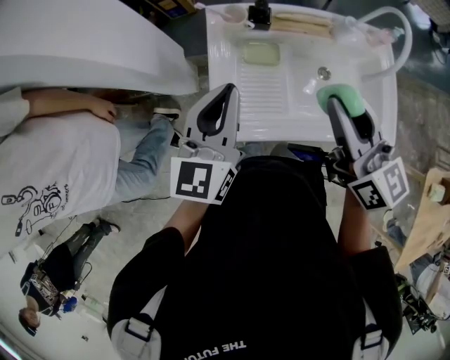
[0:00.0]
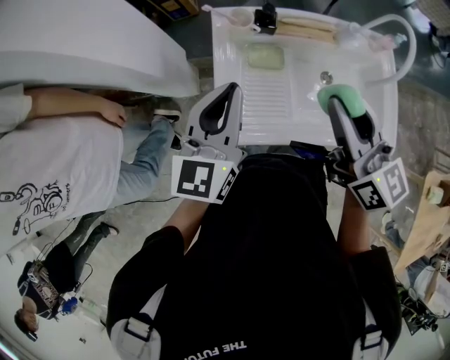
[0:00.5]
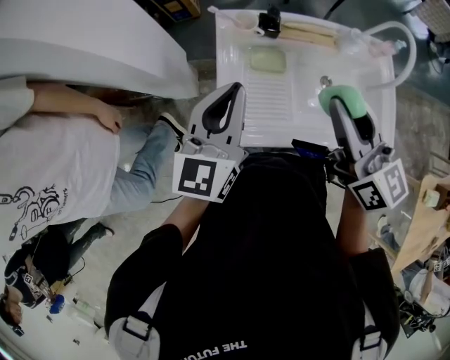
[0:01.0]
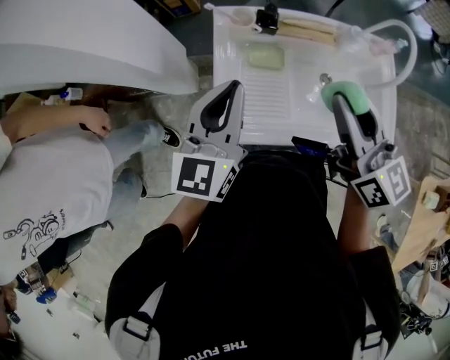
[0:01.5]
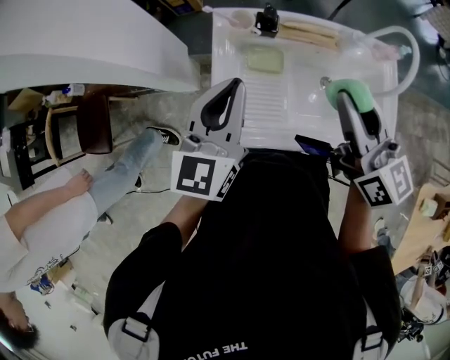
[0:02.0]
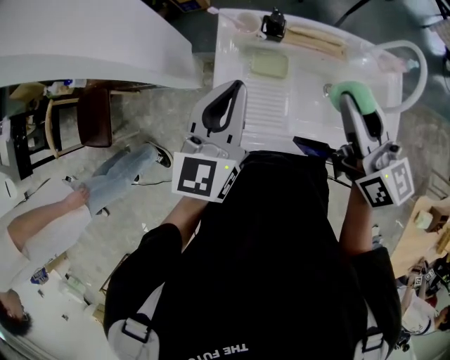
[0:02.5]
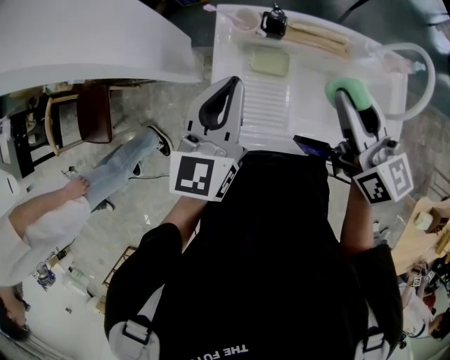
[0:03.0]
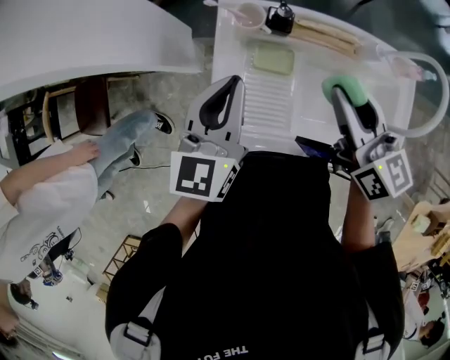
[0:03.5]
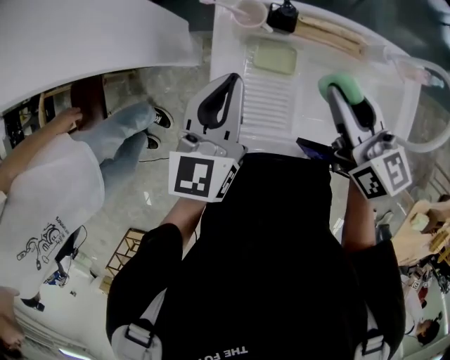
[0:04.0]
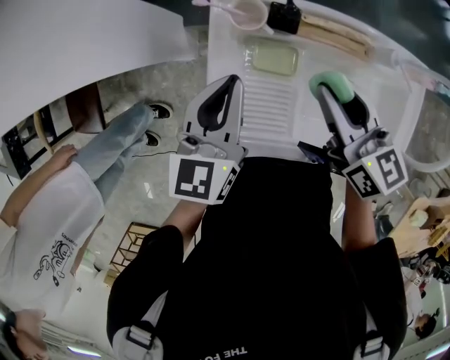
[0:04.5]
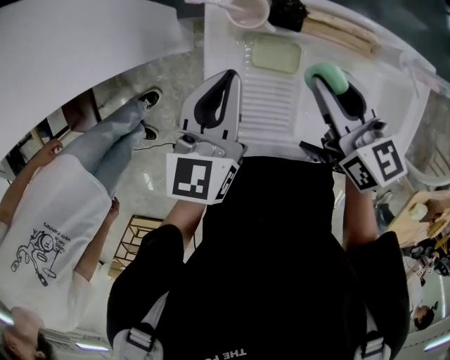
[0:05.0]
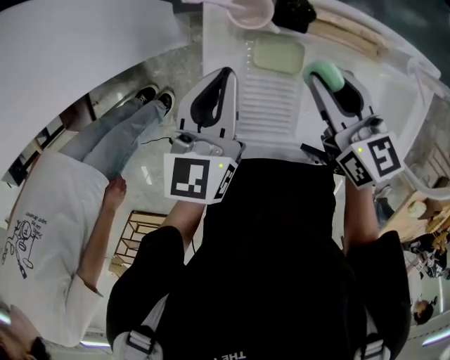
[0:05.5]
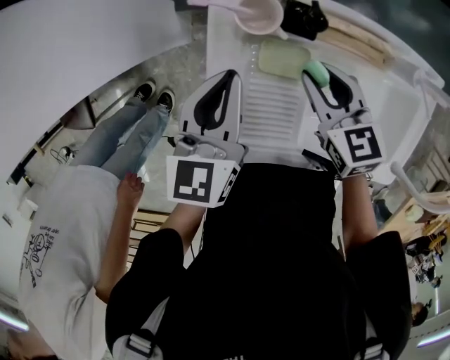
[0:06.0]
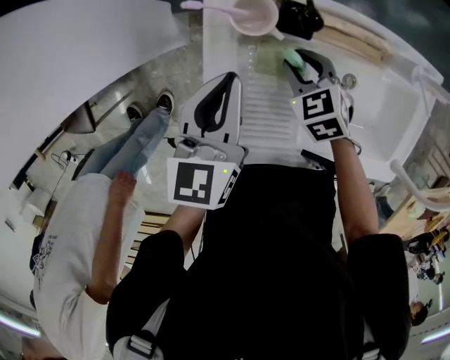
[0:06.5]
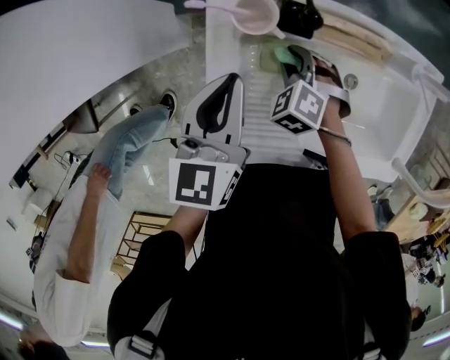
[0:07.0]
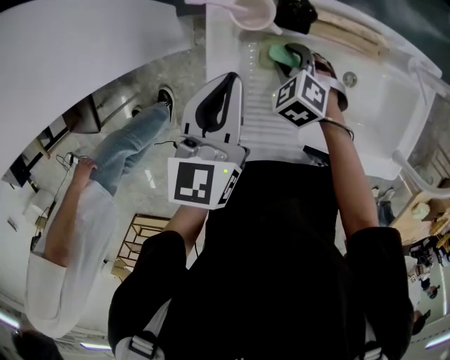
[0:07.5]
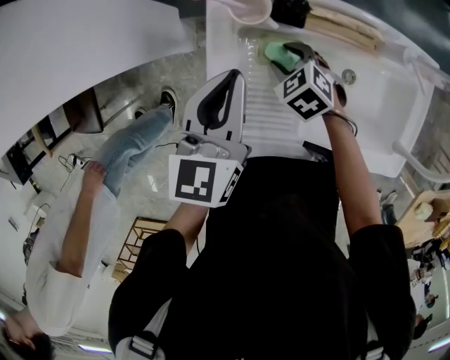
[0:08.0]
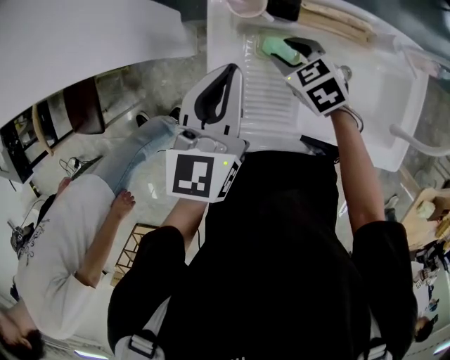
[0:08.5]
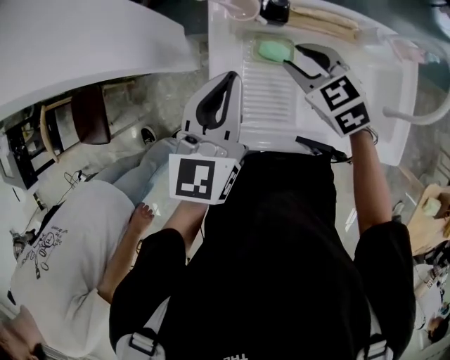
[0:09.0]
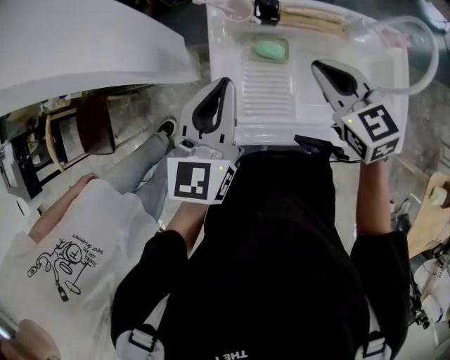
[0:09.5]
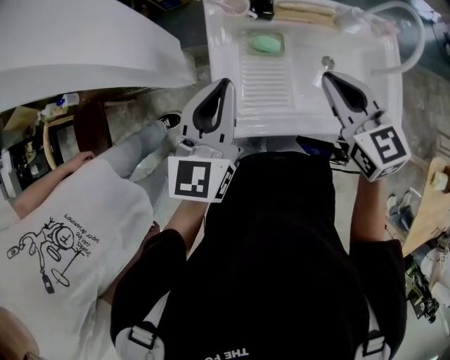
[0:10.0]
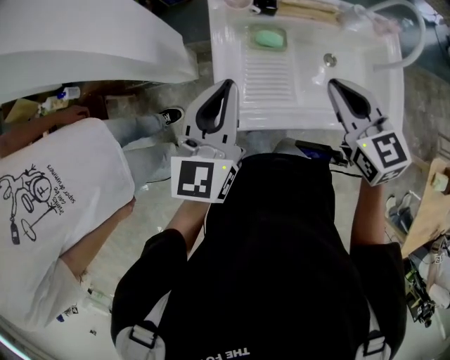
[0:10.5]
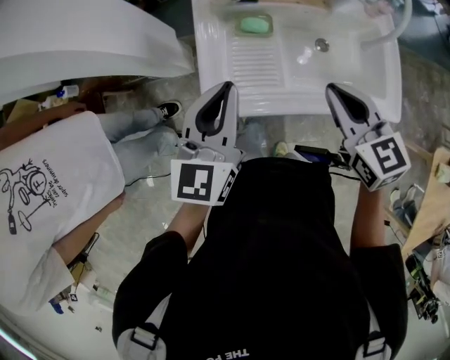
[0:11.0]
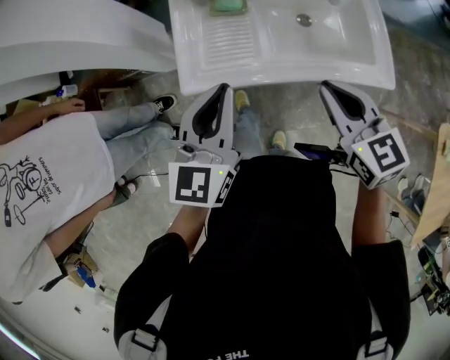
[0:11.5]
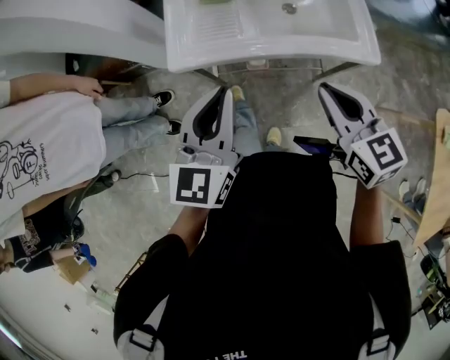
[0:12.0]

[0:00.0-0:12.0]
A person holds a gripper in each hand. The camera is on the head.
0:00.0 to 0:02.0: The right gripper moves some 5 cm.
0:02.0 to 0:04.0: Both grippers move forward and downward, some 10 cm.
0:04.0 to 0:06.0: The left gripper goes some 10 cm downward and forward. Meanwhile the right gripper goes about 15 cm downward and forward, and changes its angle by about 30 degrees.
0:06.0 to 0:08.0: The right gripper shifts about 10 cm downward, and rotates about 30 degrees.
0:08.0 to 0:10.0: The left gripper shifts approximately 15 cm backward and upward. Meanwhile the right gripper is displaced upward and backward by roughly 30 cm, tips its fingers upward by roughly 40 degrees, and closes its fingers.
0:10.0 to 0:12.0: Both grippers move backward and to the right, roughly 30 cm.

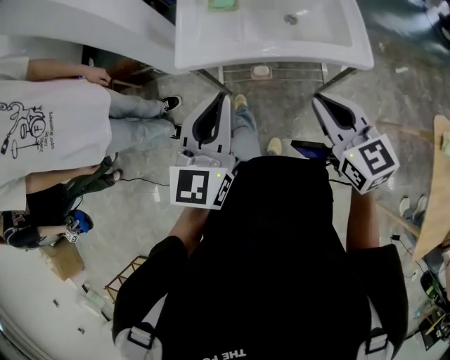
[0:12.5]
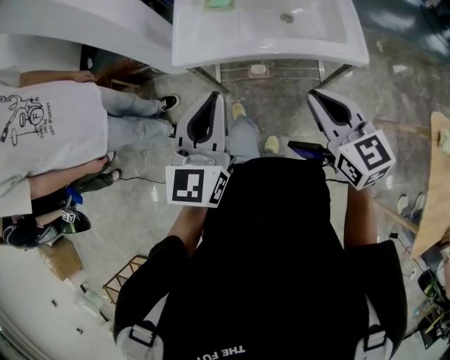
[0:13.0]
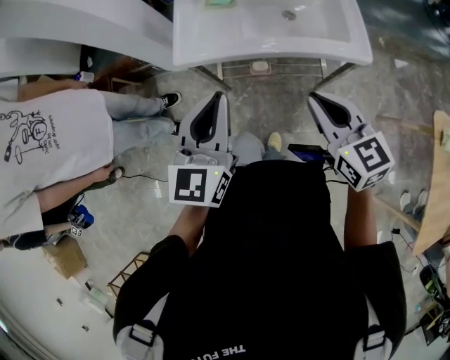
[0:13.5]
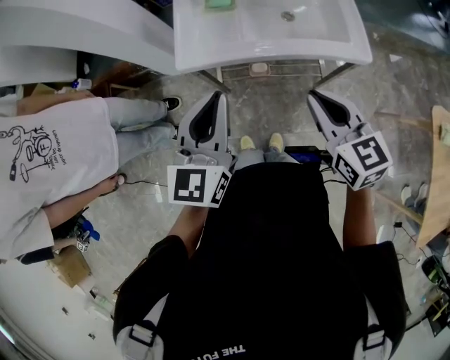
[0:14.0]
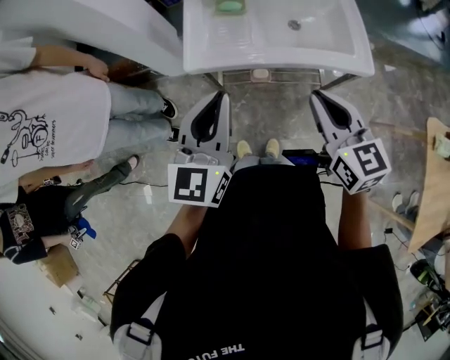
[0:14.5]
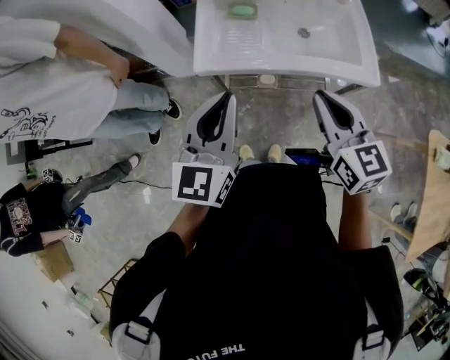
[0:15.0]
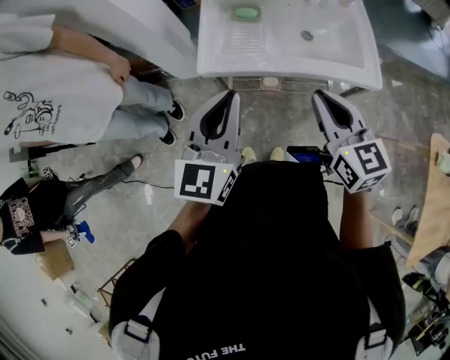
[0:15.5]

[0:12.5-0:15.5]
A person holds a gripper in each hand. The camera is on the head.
0:12.5 to 0:14.0: The grippers move only a little.
0:14.0 to 0:15.5: The right gripper shifts by about 5 cm.

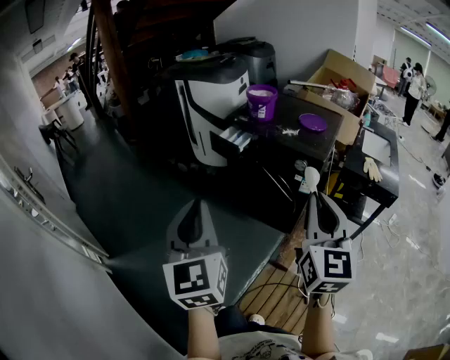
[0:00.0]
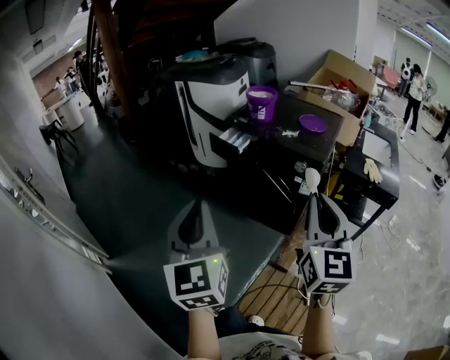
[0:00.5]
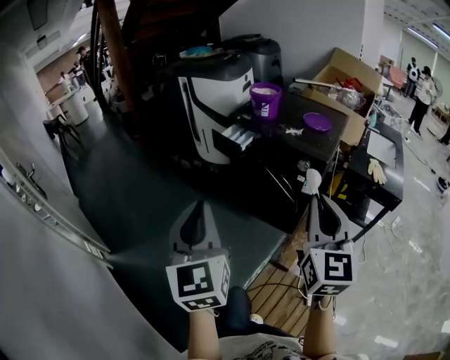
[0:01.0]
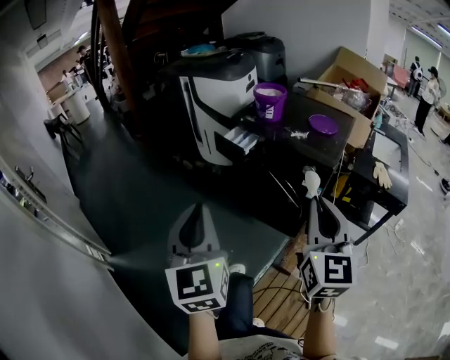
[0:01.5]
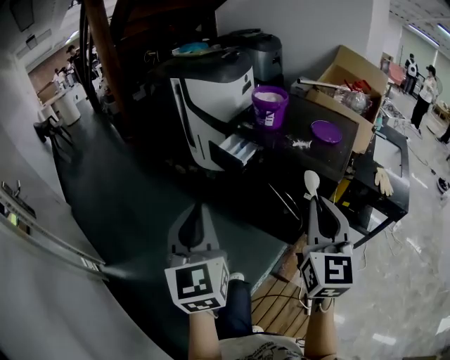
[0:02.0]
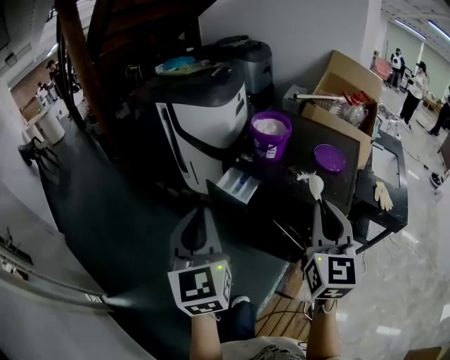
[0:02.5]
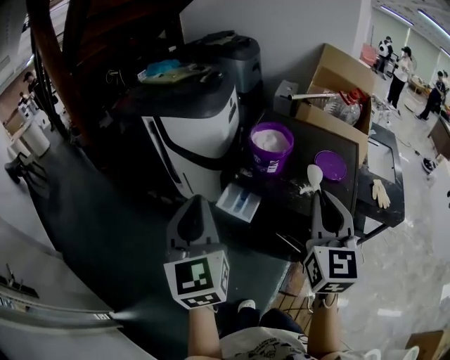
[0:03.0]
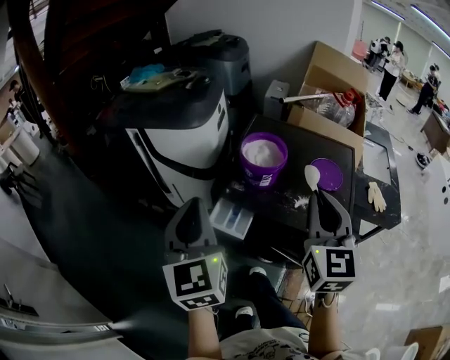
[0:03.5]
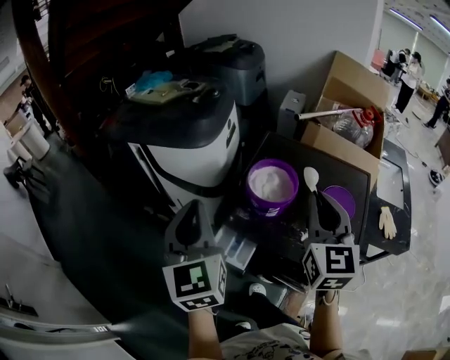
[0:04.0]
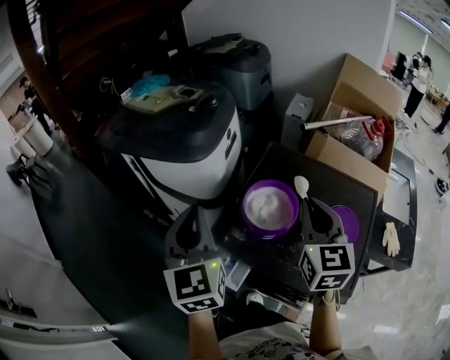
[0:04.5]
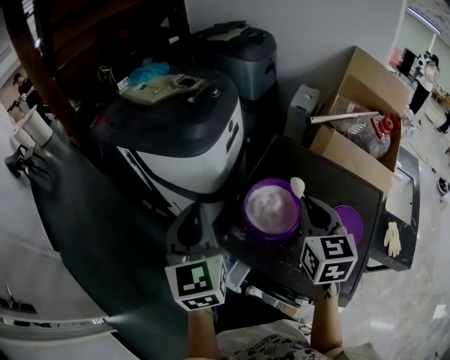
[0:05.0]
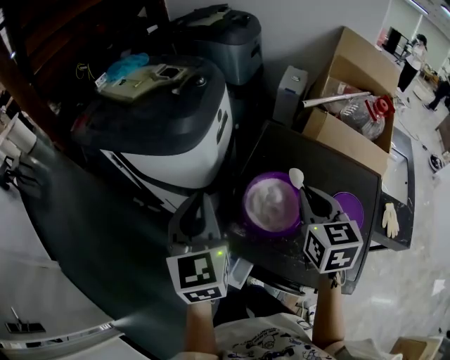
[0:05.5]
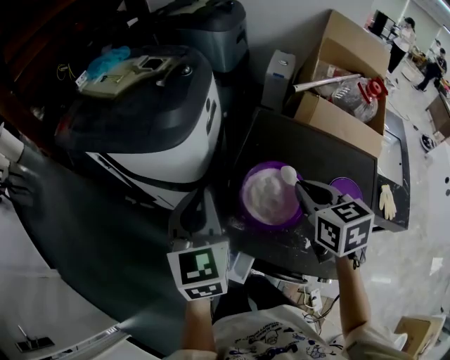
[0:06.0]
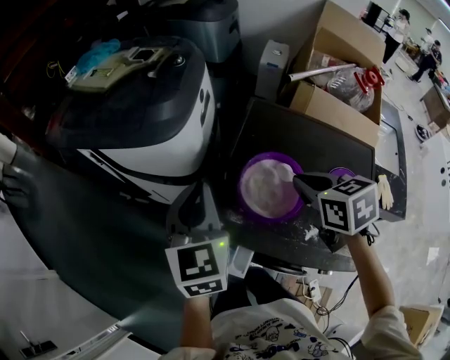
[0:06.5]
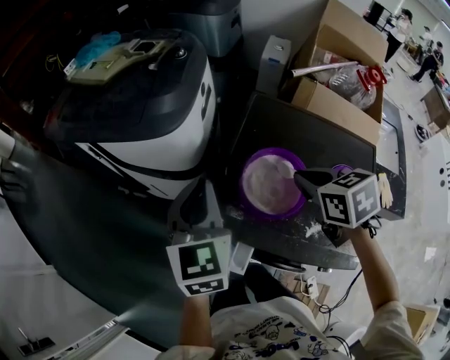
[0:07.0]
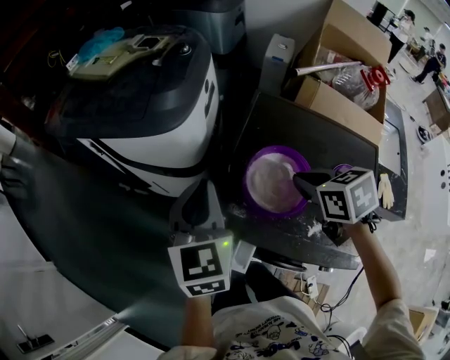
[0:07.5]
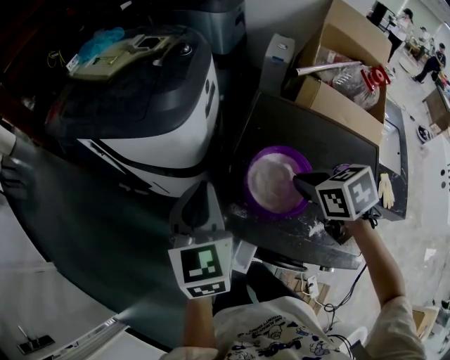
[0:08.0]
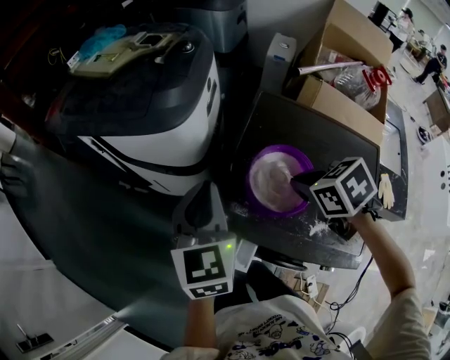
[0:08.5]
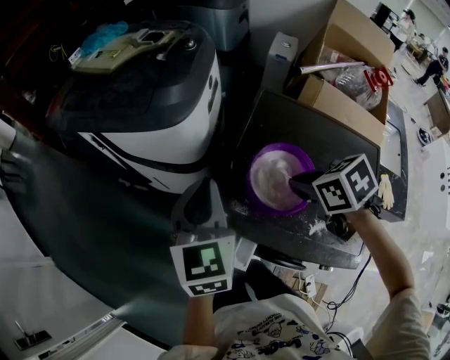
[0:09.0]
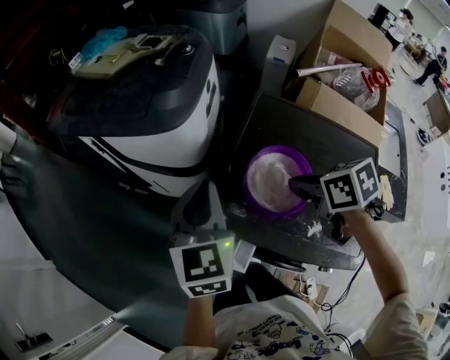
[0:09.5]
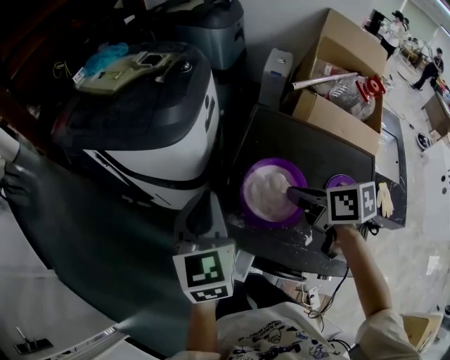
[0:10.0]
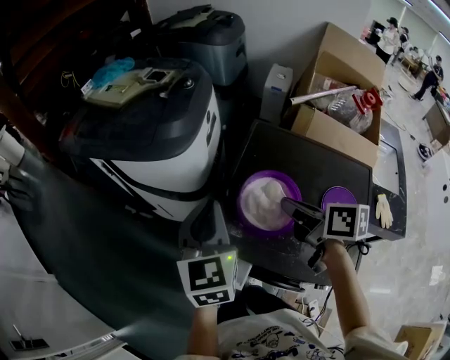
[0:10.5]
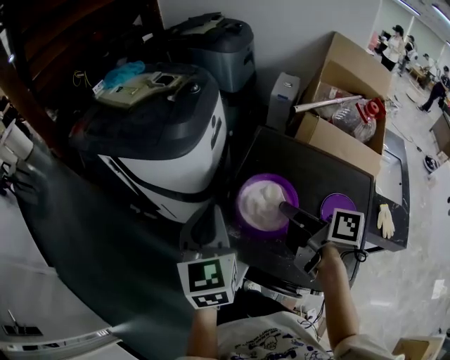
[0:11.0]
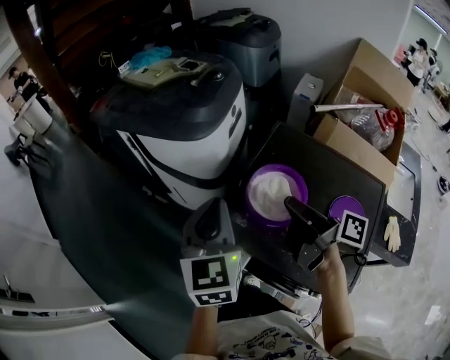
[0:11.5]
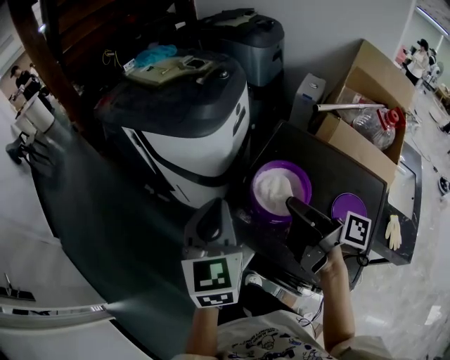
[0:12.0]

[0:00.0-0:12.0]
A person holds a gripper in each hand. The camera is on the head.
0:00.0 to 0:02.0: Both grippers move forward, approximately 15 cm.
0:02.0 to 0:04.0: The pair of grippers is taken forward, roughly 50 cm.
0:04.0 to 0:06.0: The two grippers go some 20 cm forward and downward. The right gripper turns by about 30 degrees.
0:06.0 to 0:08.0: The right gripper changes its angle by about 20 degrees.
0:08.0 to 0:10.0: The right gripper swivels about 30 degrees.
0:10.0 to 0:12.0: The left gripper heads backward, covering approximately 5 cm, while the right gripper heads upward, covering approximately 5 cm, and tilts its fingers some 40 degrees upward.
